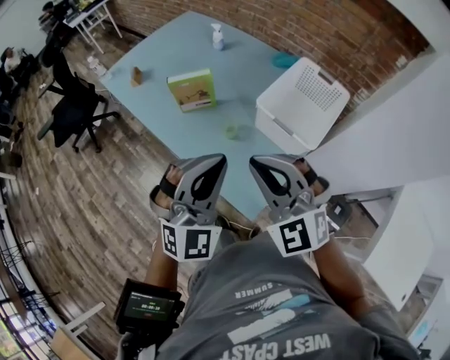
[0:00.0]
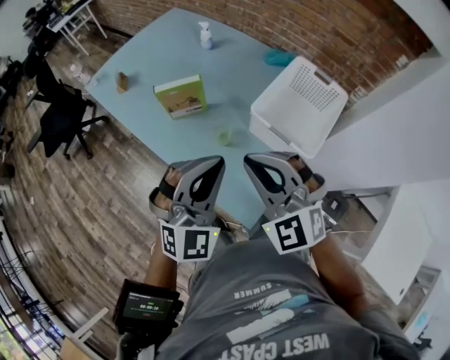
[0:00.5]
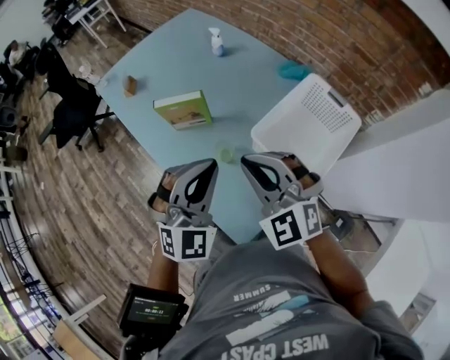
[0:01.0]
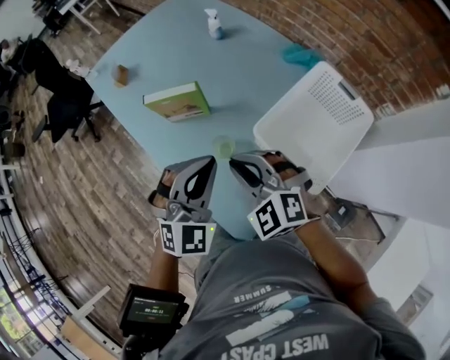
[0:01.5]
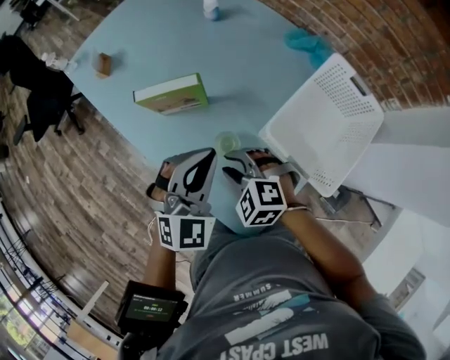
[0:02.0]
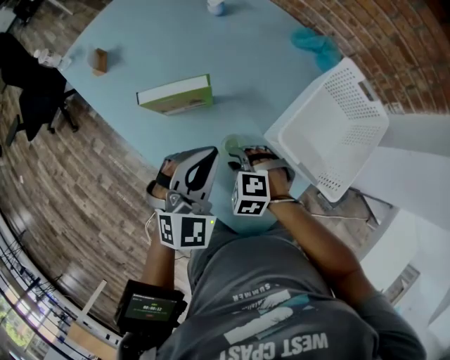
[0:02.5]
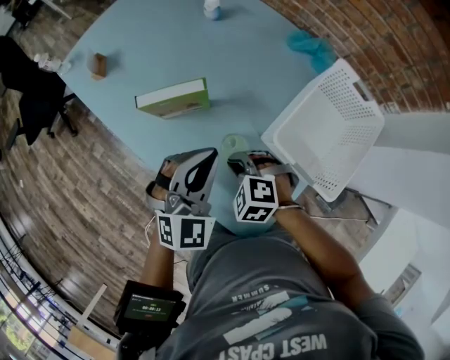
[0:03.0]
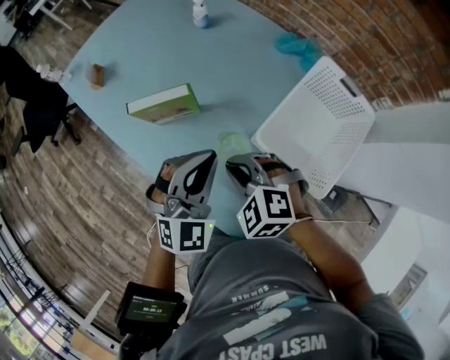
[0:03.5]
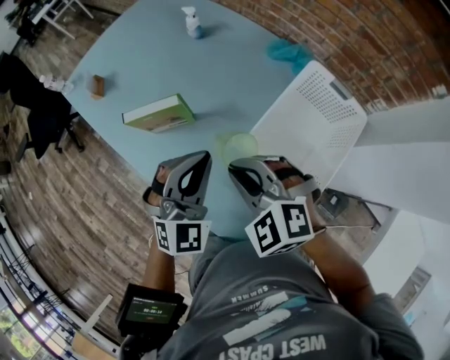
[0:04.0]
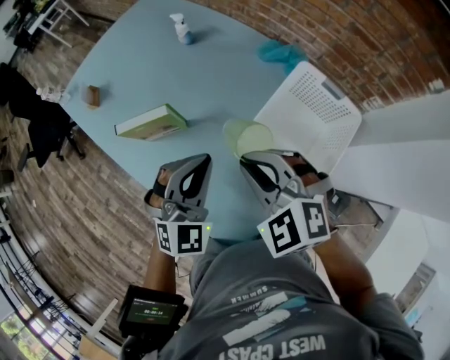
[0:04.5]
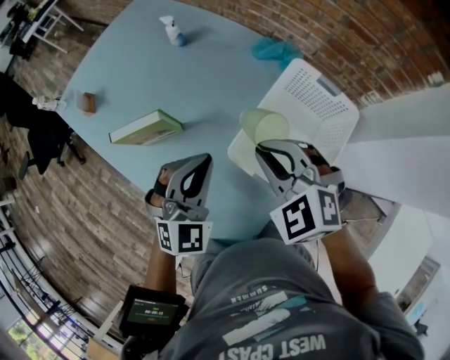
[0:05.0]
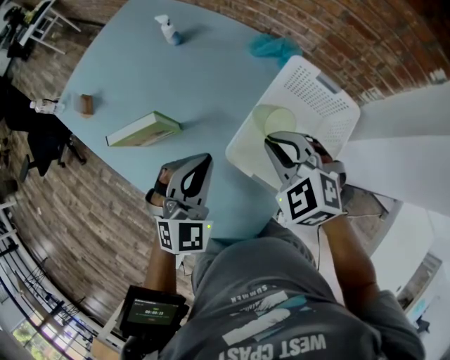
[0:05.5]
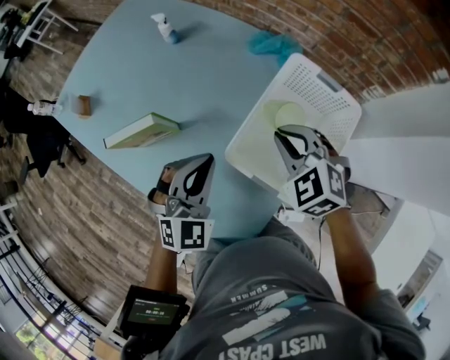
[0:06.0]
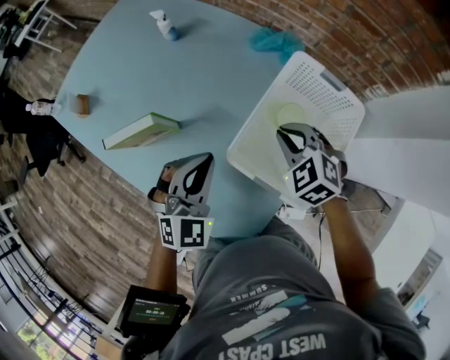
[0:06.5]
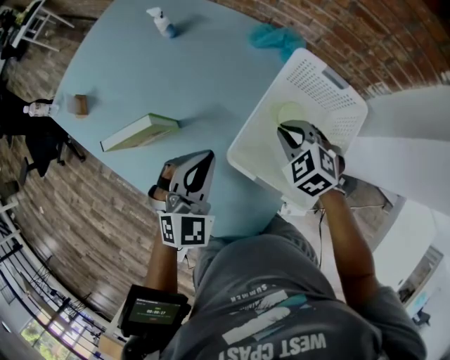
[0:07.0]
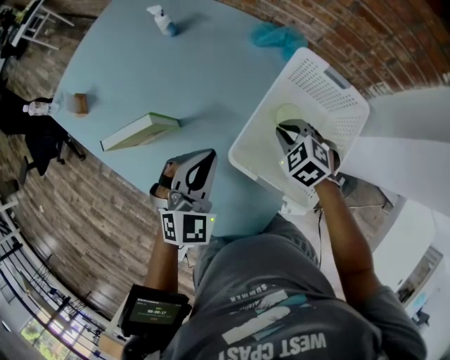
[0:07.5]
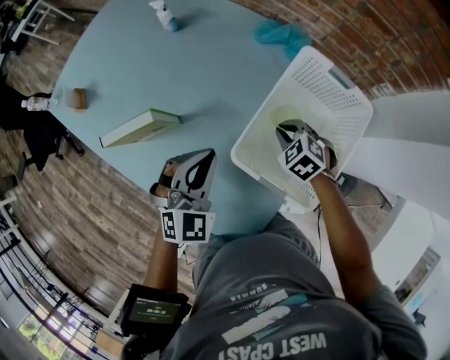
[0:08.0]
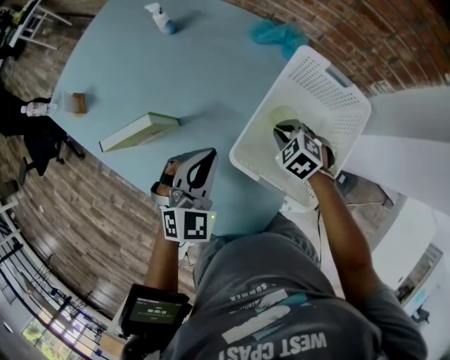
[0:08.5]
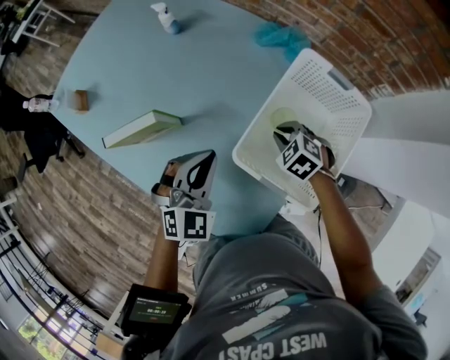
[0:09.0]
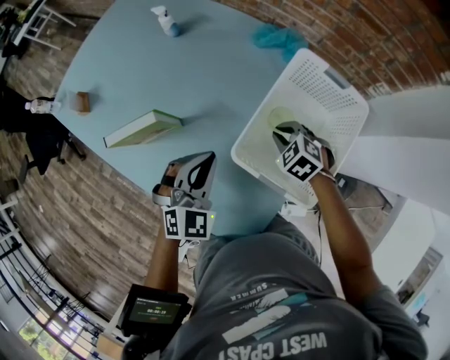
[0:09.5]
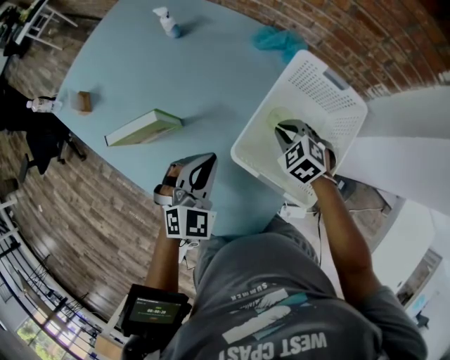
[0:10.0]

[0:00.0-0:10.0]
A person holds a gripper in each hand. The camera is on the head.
0:00.0 to 0:02.0: The right gripper heads downward and forward, covering about 30 cm, points its fingers approximately 40 degrees further downward, and opens its fingers. Meanwhile the left gripper heads forward and downward, covering approximately 25 cm, and turns by approximately 20 degrees.
0:02.0 to 0:04.0: The left gripper shifts by approximately 5 cm; the right gripper heads upward and to the right, covering some 15 cm, and closes its fingers.
0:04.0 to 0:06.0: The left gripper goes about 5 cm to the right, while the right gripper shifts about 20 cm to the right and forward, and turns by roughly 20 degrees.
0:06.0 to 0:08.0: The right gripper moves downward, roughly 15 cm.
0:08.0 to 0:10.0: The grippers make only small movements.

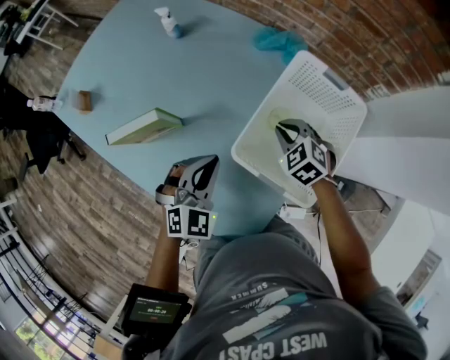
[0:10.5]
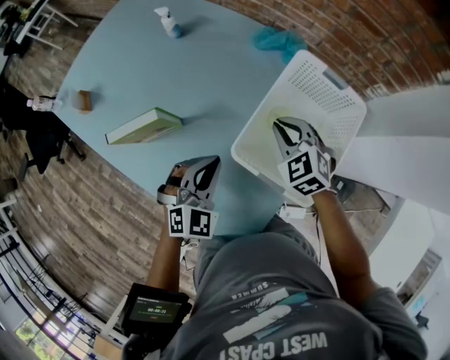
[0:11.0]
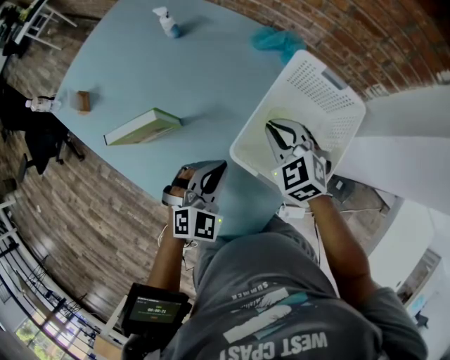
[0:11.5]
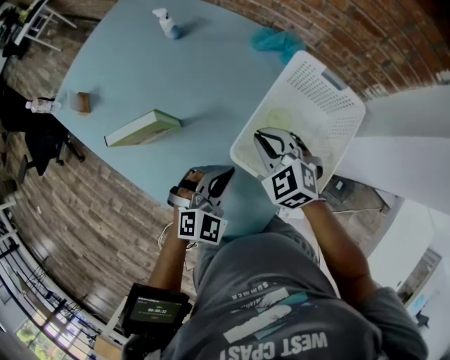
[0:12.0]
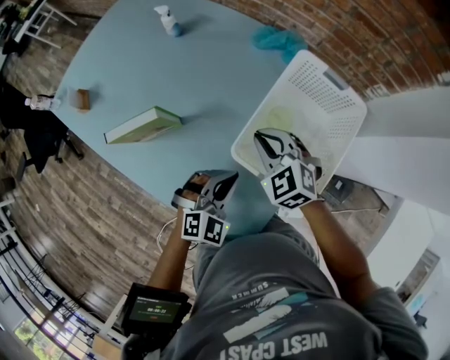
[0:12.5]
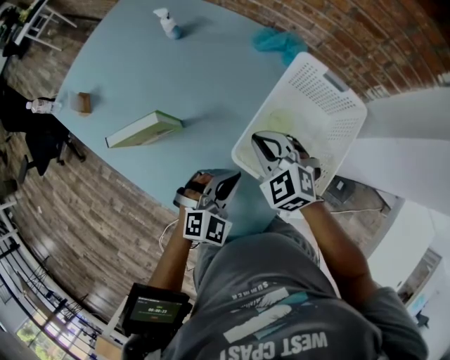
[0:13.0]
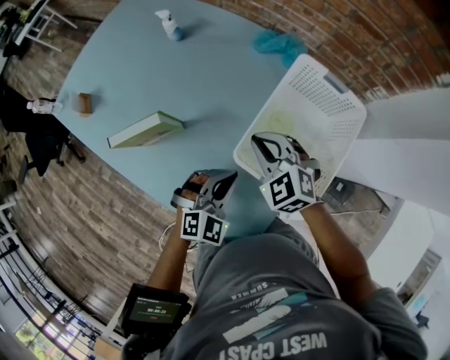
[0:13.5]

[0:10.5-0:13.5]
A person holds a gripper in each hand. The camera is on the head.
0:10.5 to 0:12.0: The left gripper changes place by about 5 cm. Meanwhile the right gripper is displaced to the left and upward by approximately 10 cm.
0:12.0 to 0:13.5: The grippers make only small movements.

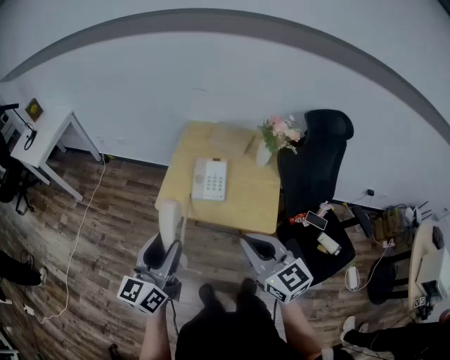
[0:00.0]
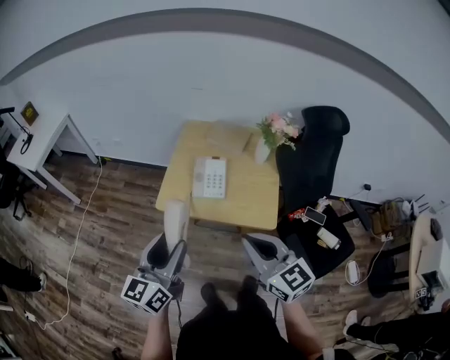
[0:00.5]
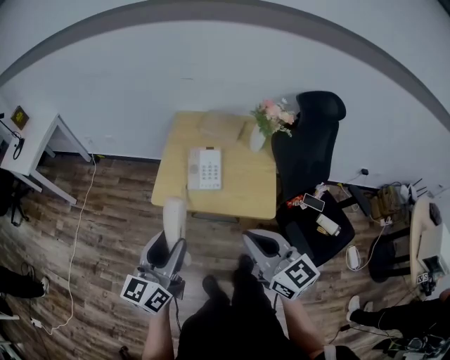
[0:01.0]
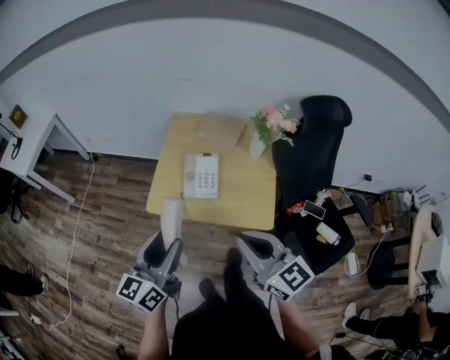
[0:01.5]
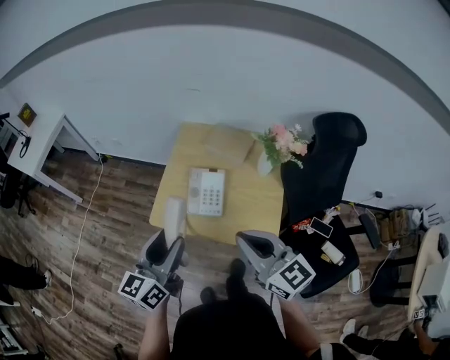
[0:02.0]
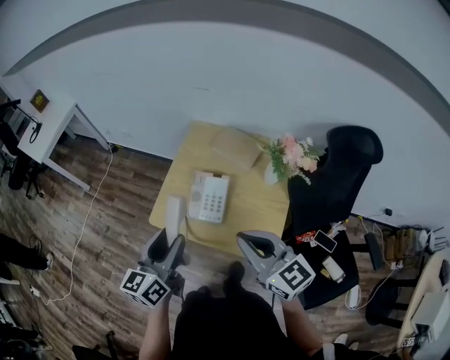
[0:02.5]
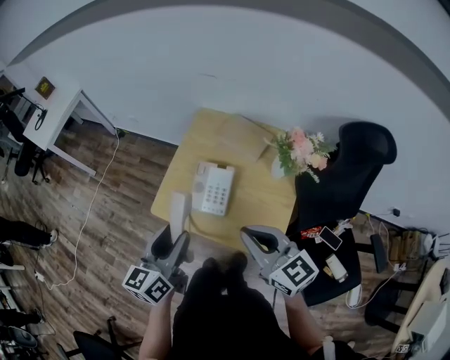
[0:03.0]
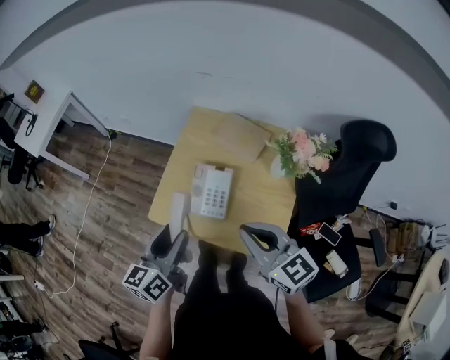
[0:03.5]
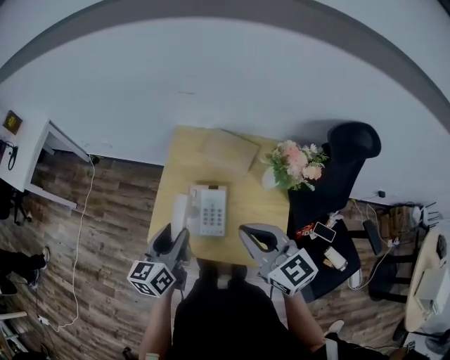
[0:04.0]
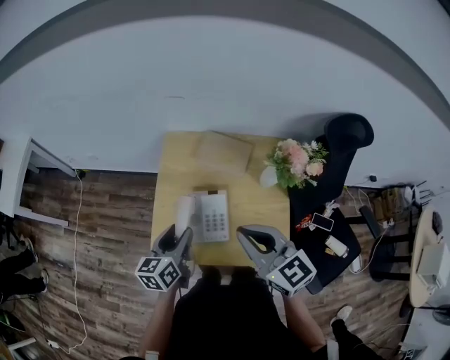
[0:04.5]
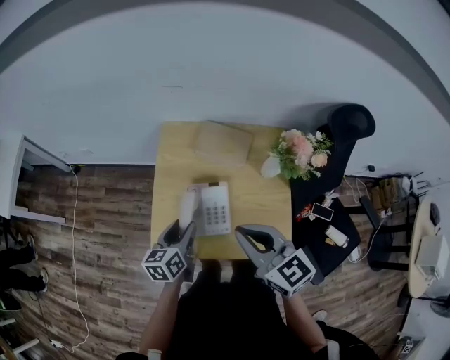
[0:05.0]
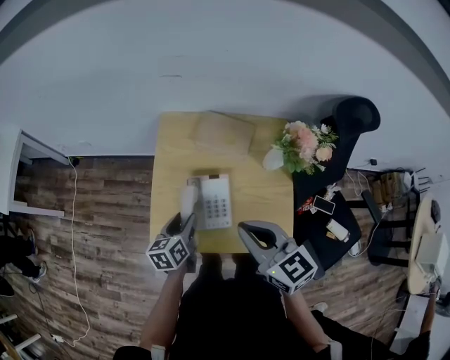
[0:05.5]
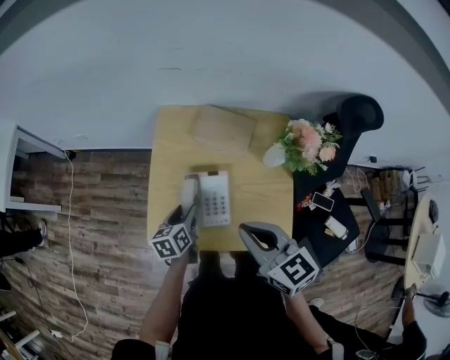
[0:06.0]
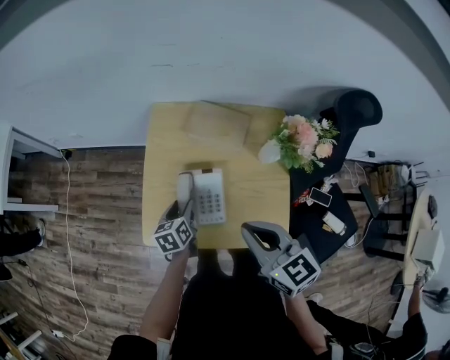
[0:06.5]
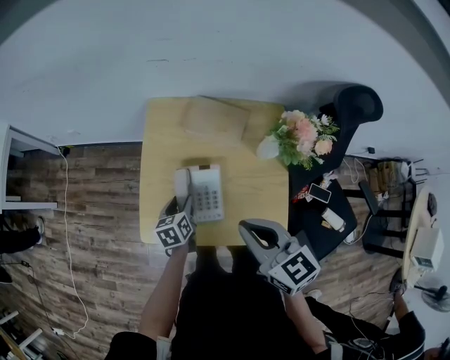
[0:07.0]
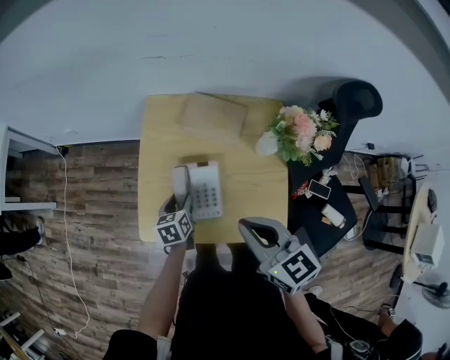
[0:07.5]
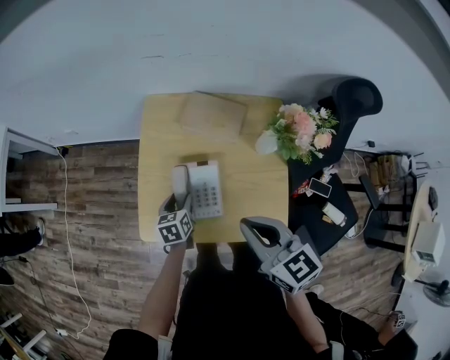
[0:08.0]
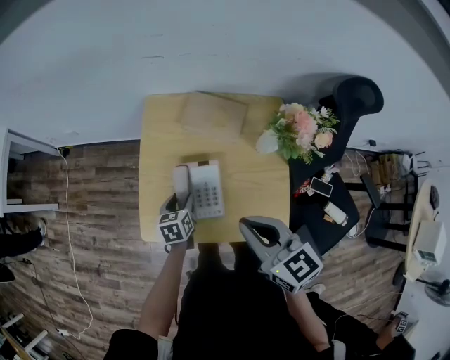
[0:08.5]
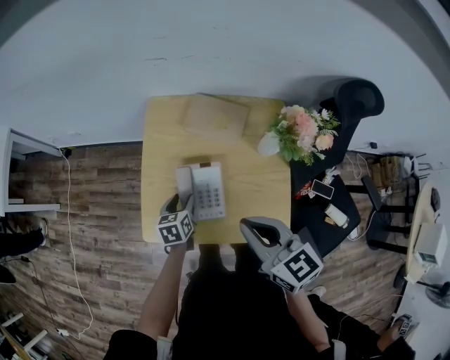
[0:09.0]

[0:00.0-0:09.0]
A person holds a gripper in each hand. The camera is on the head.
0:00.0 to 0:02.0: The left gripper travels forward and to the right by about 15 cm. The right gripper goes about 15 cm forward.
0:02.0 to 0:04.5: The left gripper shifts some 25 cm forward and downward, and rotates about 20 degrees; the right gripper heads forward, covering approximately 20 cm.
0:04.5 to 0:07.0: The left gripper is displaced downward by roughly 15 cm, and swivels roughly 20 degrees. The right gripper moves downward, about 5 cm.
0:07.0 to 0:09.0: The grippers make only small movements.

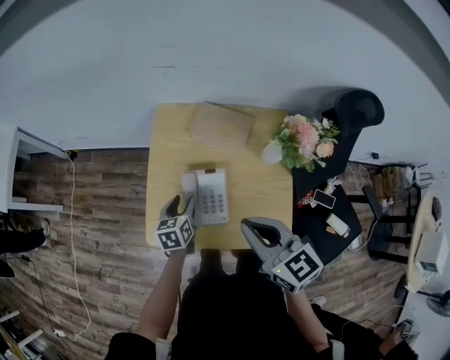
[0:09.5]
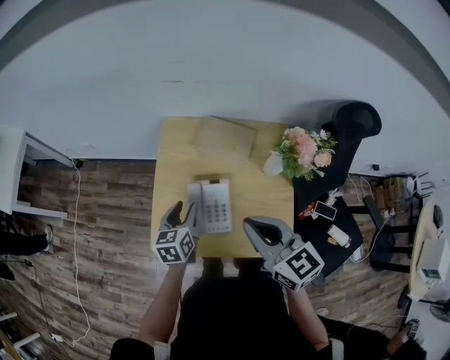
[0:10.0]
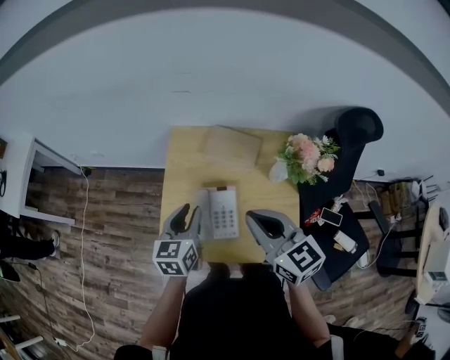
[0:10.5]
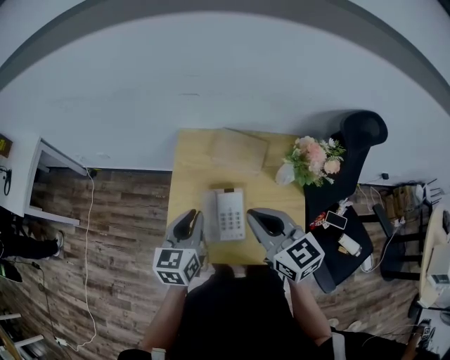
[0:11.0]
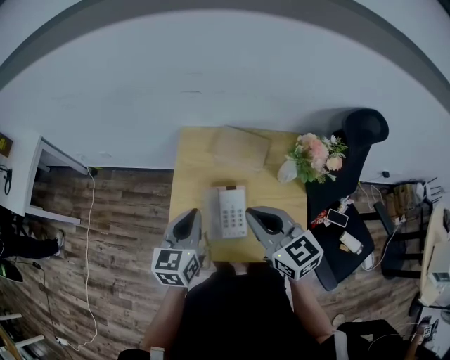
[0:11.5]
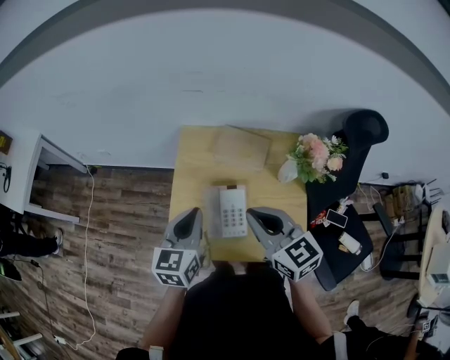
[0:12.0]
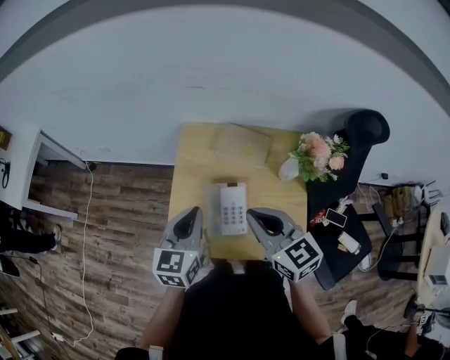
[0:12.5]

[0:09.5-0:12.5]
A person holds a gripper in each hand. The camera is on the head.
0:09.5 to 0:11.0: The right gripper changes place by about 5 cm; the left gripper shifts about 20 cm upward, turns by about 20 degrees, and closes its fingers.
0:11.0 to 0:12.5: There are only small adjustments of the grippers.

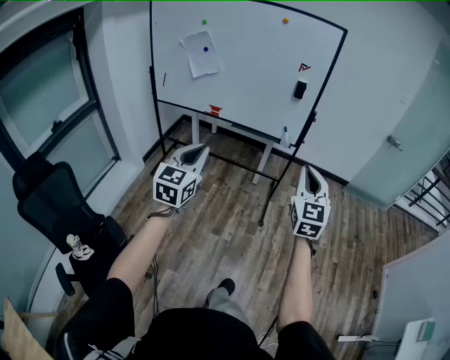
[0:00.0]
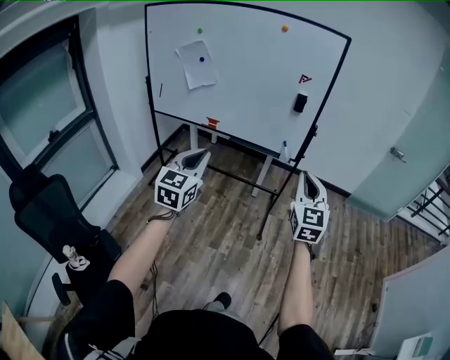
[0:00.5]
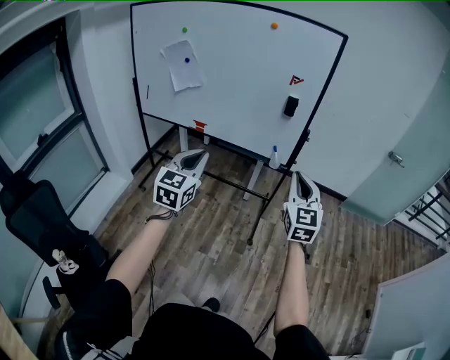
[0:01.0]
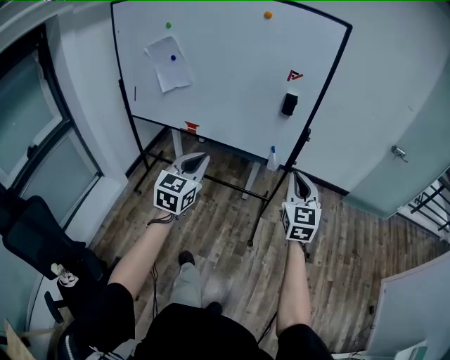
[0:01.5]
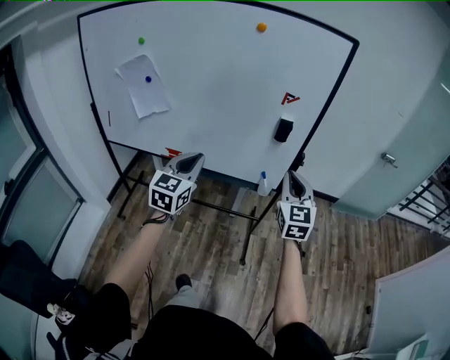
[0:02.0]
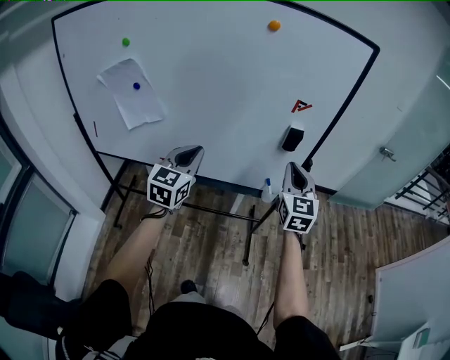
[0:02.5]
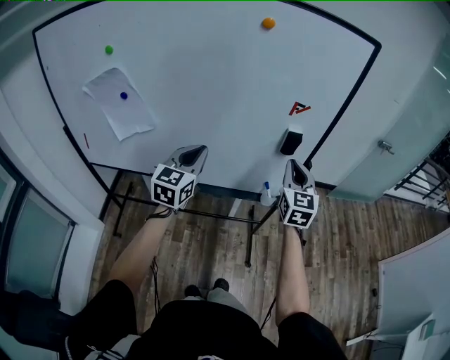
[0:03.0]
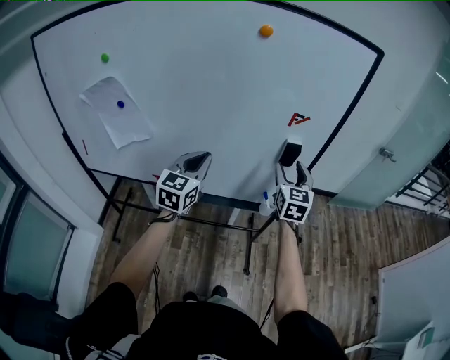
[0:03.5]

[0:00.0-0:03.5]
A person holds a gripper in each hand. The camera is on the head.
0:00.0 to 0:02.0: The two grippers travel together, forward, approximately 40 cm.
0:02.0 to 0:03.5: Both grippers move forward, some 20 cm. The right gripper opens up.
